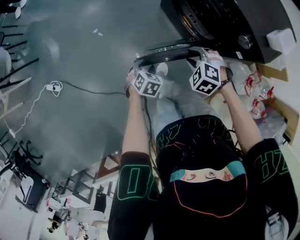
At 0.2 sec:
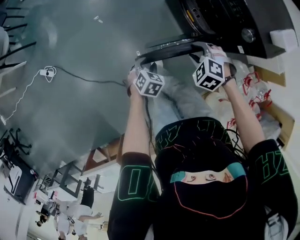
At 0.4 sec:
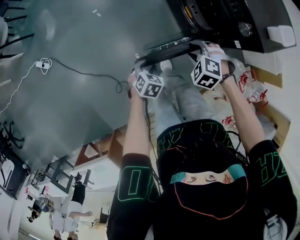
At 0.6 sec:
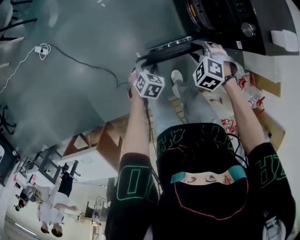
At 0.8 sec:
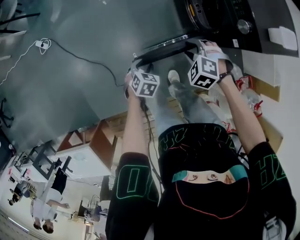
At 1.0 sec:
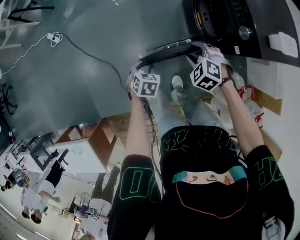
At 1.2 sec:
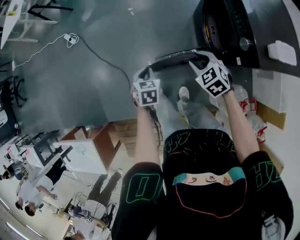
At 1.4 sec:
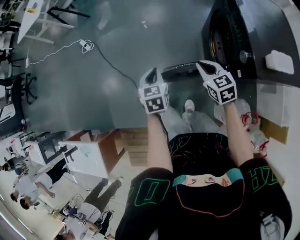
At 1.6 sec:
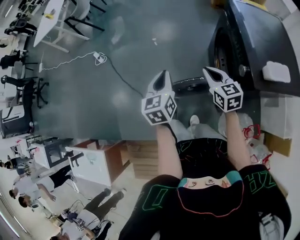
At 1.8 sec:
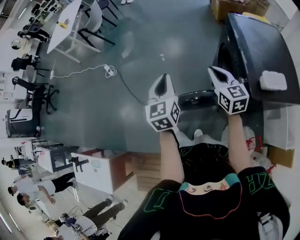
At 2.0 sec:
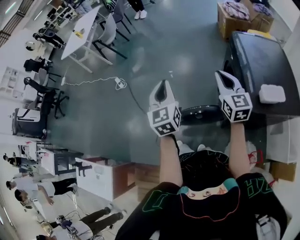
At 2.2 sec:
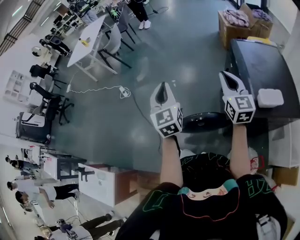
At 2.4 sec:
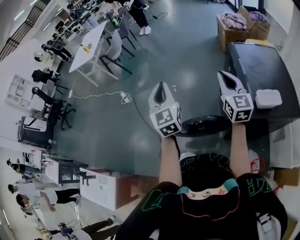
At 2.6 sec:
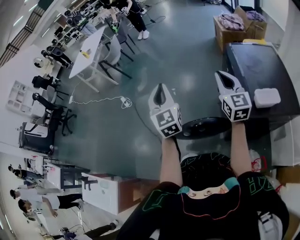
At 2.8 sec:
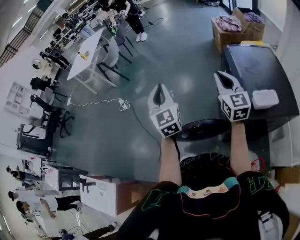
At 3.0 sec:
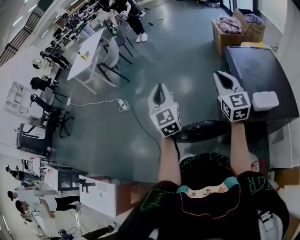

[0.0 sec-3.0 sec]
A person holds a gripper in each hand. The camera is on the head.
0.0 sec to 1.6 sec: The right gripper travels upward by approximately 20 cm, angles its fingers upward, by roughly 40 degrees, and closes its fingers. Meanwhile the left gripper moves upward, about 35 cm, tilts its fingers approximately 40 degrees upward, and closes.
1.6 sec to 3.0 sec: Both grippers travel together upward, some 20 cm. The left gripper rotates approximately 40 degrees. The right gripper rotates roughly 30 degrees.

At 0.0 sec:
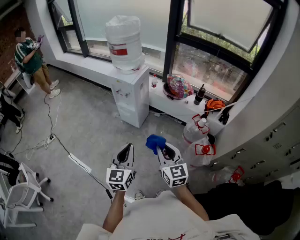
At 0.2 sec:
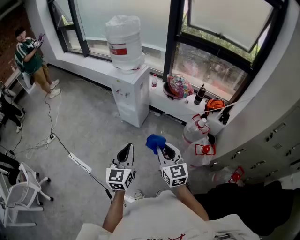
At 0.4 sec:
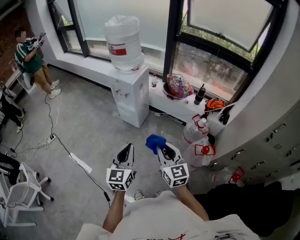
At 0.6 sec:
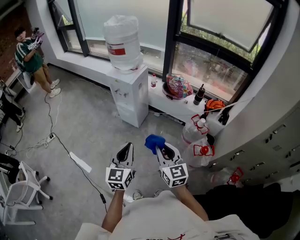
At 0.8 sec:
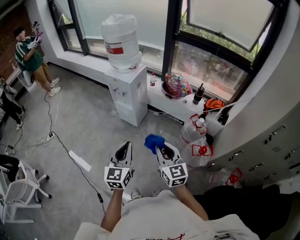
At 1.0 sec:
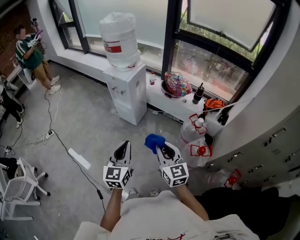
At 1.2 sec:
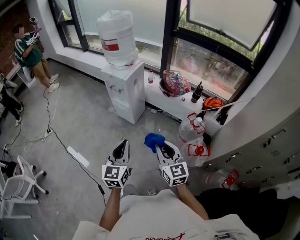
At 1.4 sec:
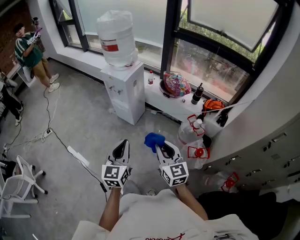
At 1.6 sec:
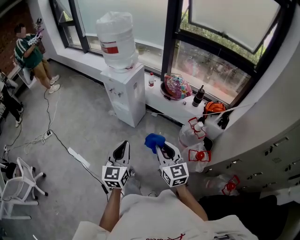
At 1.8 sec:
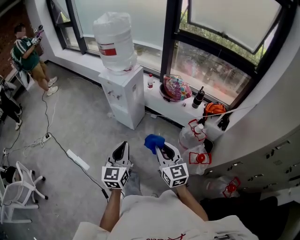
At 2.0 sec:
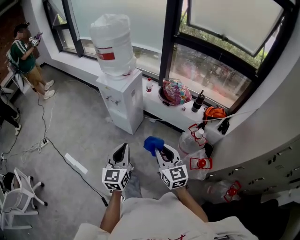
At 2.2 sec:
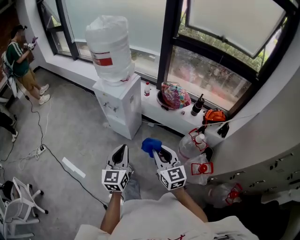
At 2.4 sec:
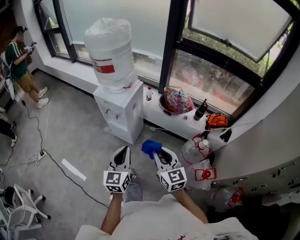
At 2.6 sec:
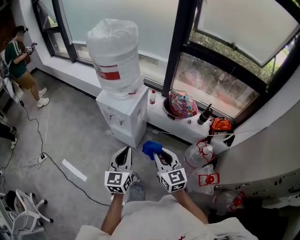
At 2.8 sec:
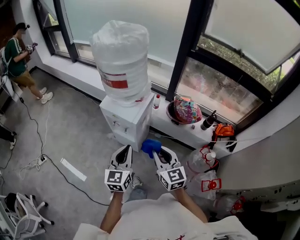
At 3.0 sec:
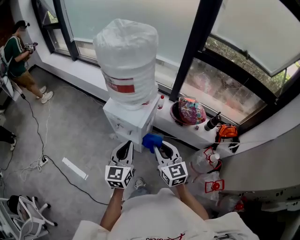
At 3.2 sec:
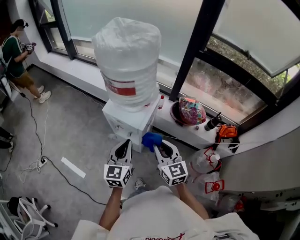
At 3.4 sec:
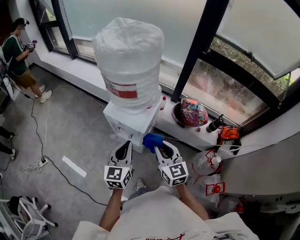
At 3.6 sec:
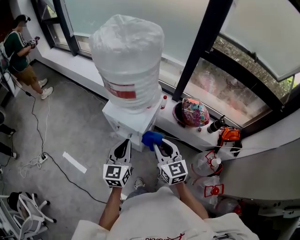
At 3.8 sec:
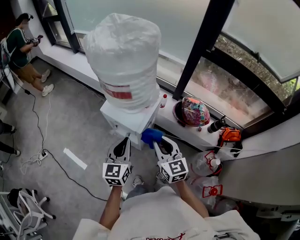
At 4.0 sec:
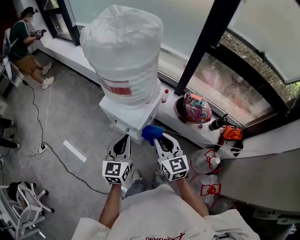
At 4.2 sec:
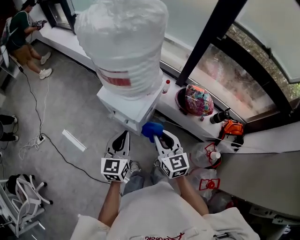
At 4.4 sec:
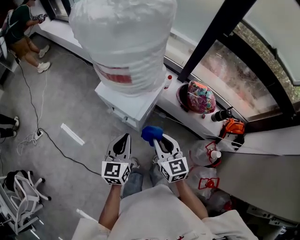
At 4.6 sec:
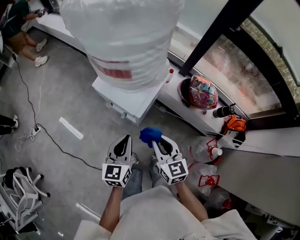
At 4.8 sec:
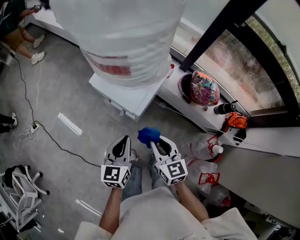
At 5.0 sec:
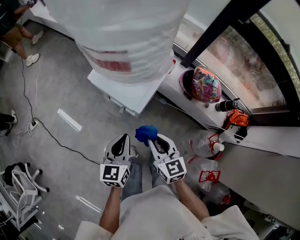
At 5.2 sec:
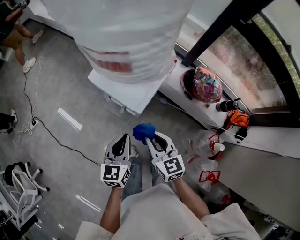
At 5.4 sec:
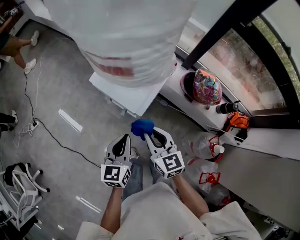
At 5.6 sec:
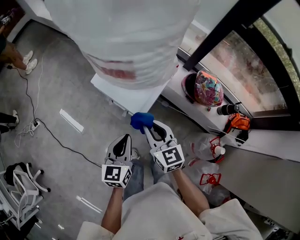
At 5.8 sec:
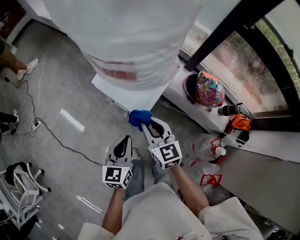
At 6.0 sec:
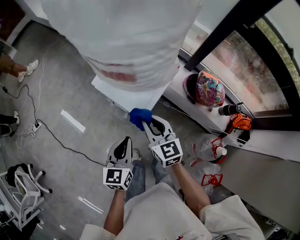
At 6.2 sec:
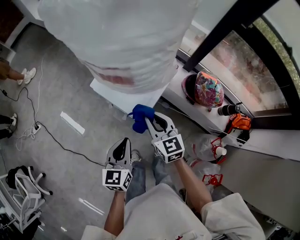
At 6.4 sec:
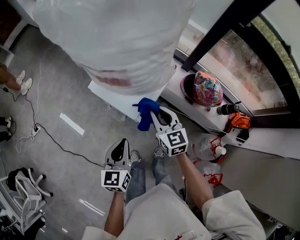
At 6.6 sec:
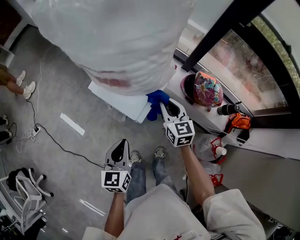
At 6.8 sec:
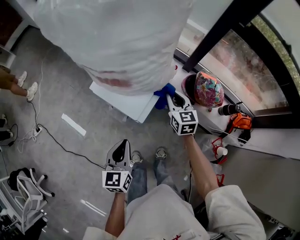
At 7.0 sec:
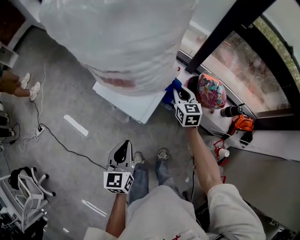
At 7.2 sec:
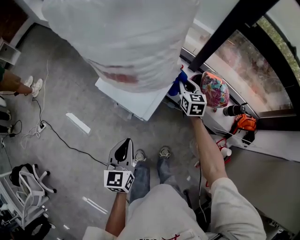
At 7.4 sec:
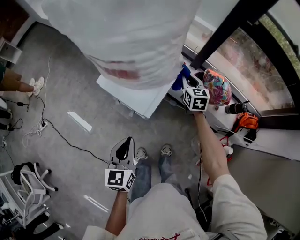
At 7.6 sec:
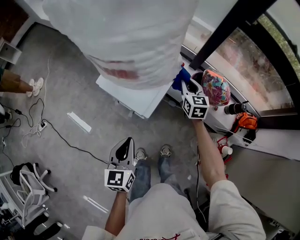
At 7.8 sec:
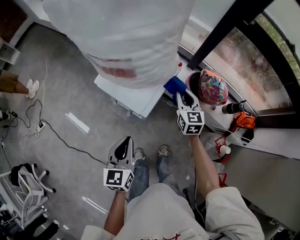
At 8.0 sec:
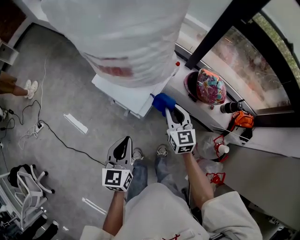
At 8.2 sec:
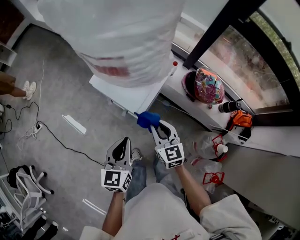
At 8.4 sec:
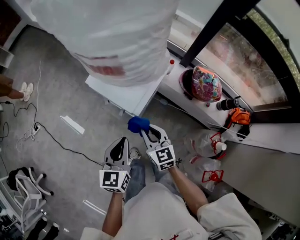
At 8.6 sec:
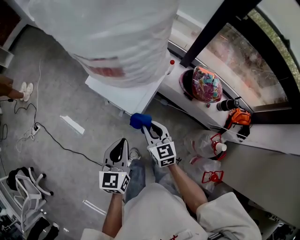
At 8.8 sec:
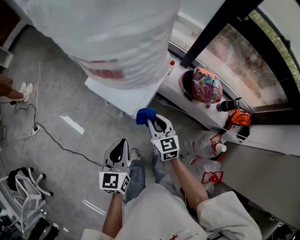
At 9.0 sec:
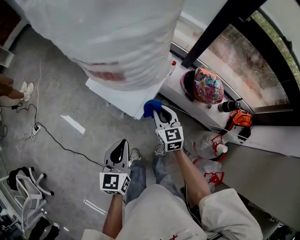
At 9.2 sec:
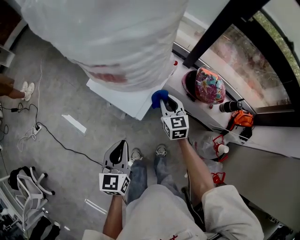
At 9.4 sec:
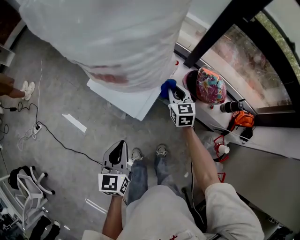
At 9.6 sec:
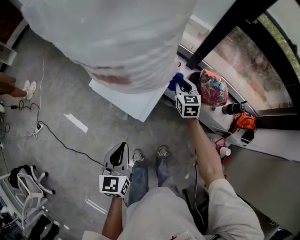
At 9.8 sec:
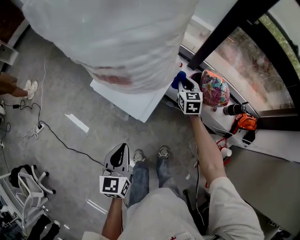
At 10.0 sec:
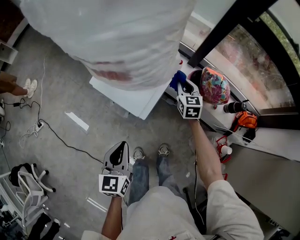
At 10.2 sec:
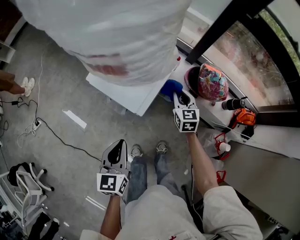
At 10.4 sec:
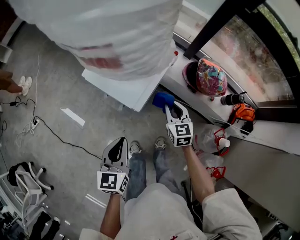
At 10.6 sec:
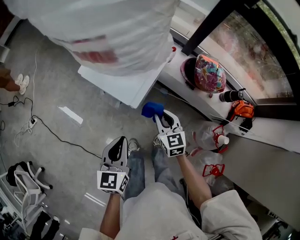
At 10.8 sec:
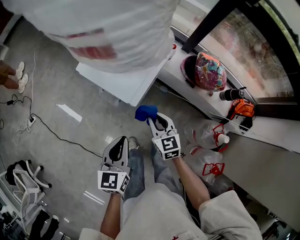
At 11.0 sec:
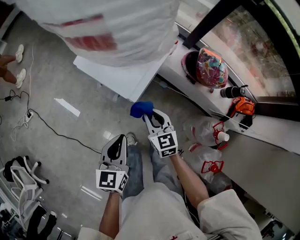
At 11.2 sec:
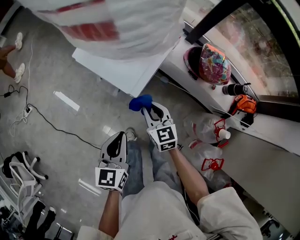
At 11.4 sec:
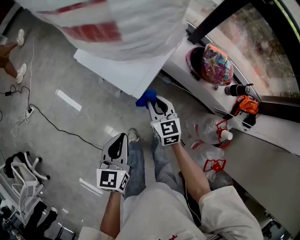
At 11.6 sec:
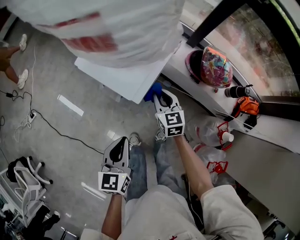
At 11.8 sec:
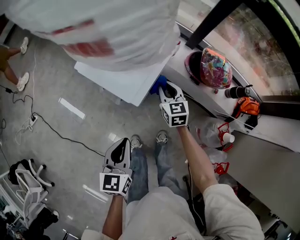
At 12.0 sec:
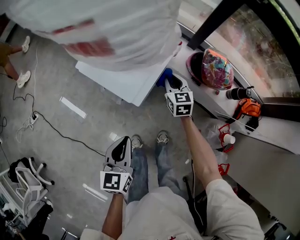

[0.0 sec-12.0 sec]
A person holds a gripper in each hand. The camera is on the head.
0.0 sec to 1.6 sec: The left gripper is displaced to the right and forward by some 10 cm. Meanwhile the right gripper goes some 10 cm to the right.
1.6 sec to 3.0 sec: The pair of grippers is taken forward, some 40 cm.
3.0 sec to 4.4 sec: Both grippers move downward and forward, approximately 10 cm.
4.4 sec to 6.0 sec: The left gripper heads downward, covering roughly 5 cm, while the right gripper shifts about 10 cm forward and to the left.
6.0 sec to 7.6 sec: The right gripper shifts approximately 25 cm to the right and forward, and swivels approximately 20 degrees.
7.6 sec to 9.0 sec: The right gripper shifts roughly 15 cm backward and to the left.
9.0 sec to 10.4 sec: The right gripper travels to the right by about 5 cm, and moves approximately 15 cm forward and comes back.
10.4 sec to 12.0 sec: The right gripper travels forward by about 10 cm.

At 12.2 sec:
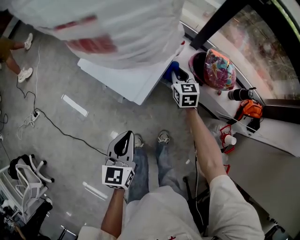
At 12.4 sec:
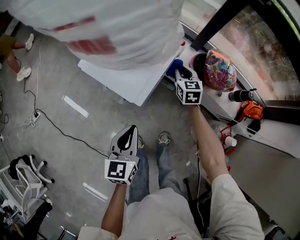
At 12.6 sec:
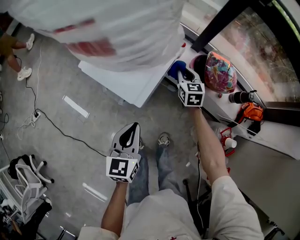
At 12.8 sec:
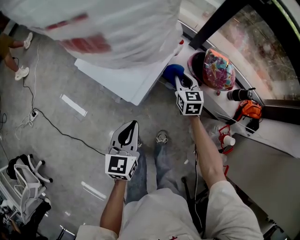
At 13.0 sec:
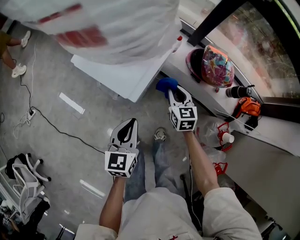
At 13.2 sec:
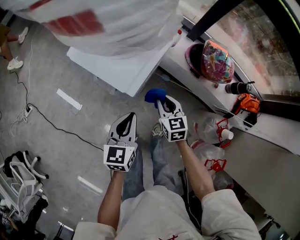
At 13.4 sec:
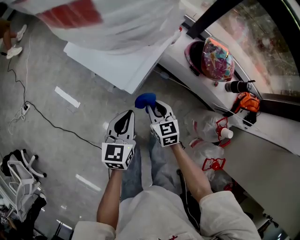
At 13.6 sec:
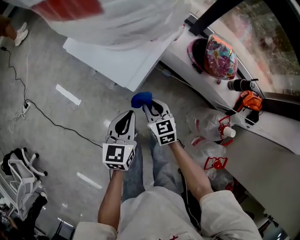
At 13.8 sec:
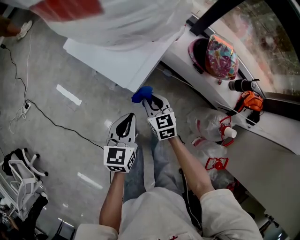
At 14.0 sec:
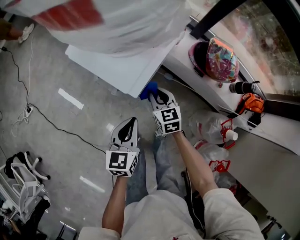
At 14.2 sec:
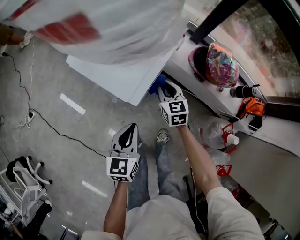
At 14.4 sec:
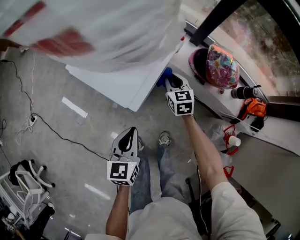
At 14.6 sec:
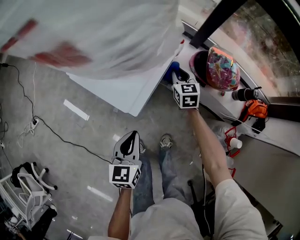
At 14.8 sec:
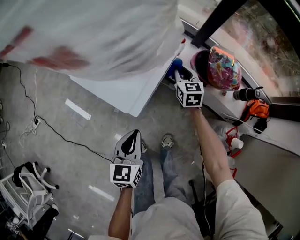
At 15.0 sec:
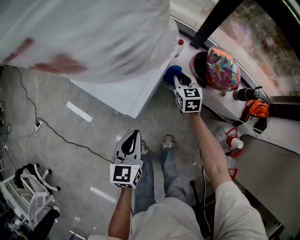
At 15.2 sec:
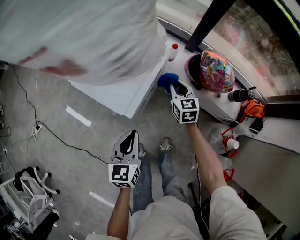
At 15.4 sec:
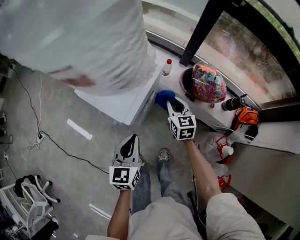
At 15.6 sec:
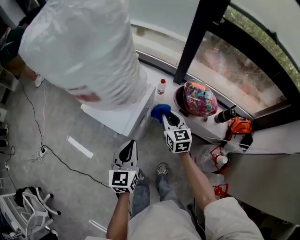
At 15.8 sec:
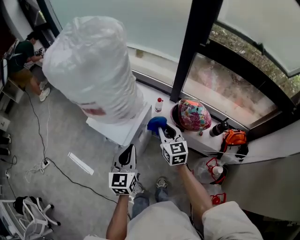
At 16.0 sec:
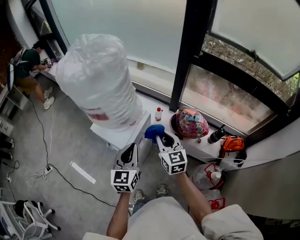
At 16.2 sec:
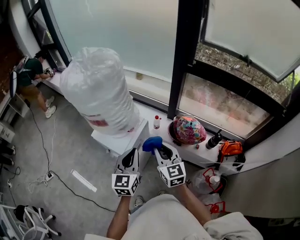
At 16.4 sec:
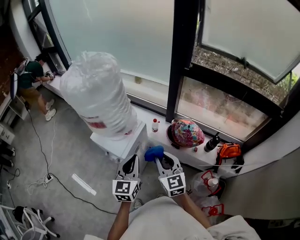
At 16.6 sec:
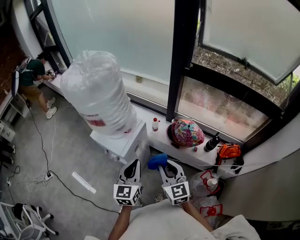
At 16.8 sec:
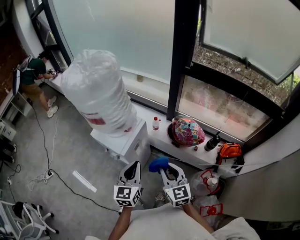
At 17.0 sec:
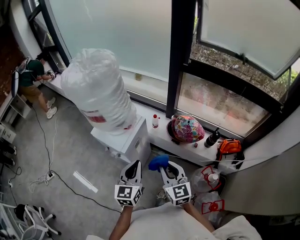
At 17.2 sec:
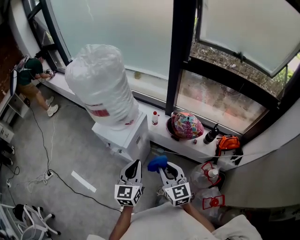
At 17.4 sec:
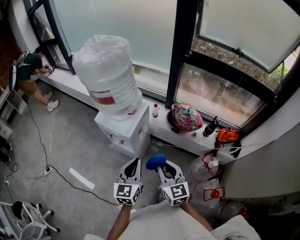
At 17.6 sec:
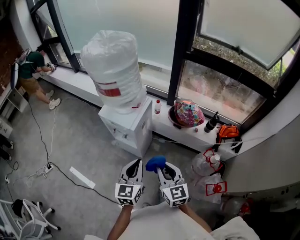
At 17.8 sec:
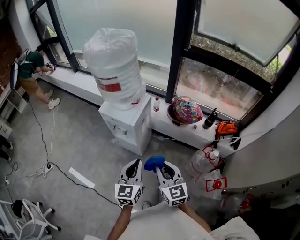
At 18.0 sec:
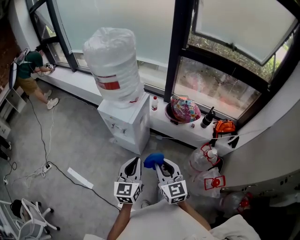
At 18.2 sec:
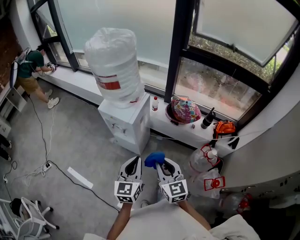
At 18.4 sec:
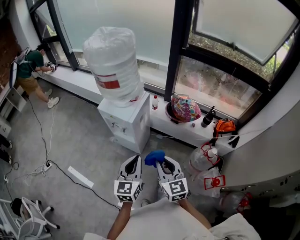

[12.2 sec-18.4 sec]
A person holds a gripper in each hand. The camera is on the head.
12.2 sec to 13.8 sec: The left gripper goes some 10 cm downward; the right gripper goes some 20 cm backward and to the left.
13.8 sec to 15.4 sec: The right gripper is displaced to the right, forward and upward by some 20 cm. The left gripper is displaced upward by roughly 10 cm.
15.4 sec to 16.8 sec: The right gripper goes some 30 cm upward and backward. The left gripper travels upward and to the right by roughly 20 cm.
16.8 sec to 18.4 sec: The left gripper travels backward by approximately 20 cm, while the right gripper shifts about 20 cm backward and to the left.

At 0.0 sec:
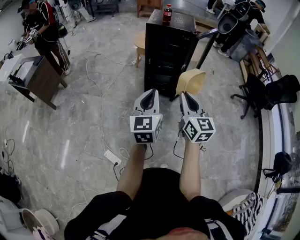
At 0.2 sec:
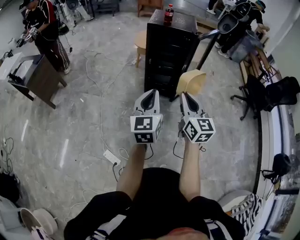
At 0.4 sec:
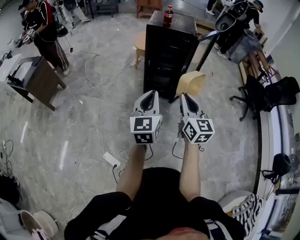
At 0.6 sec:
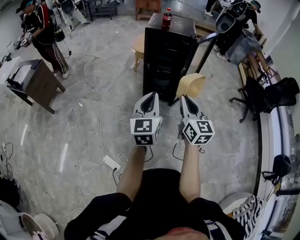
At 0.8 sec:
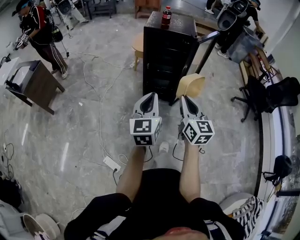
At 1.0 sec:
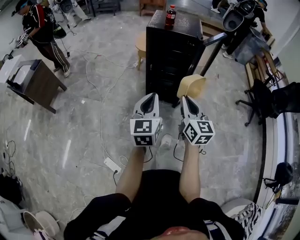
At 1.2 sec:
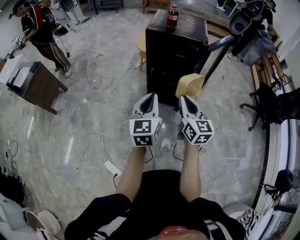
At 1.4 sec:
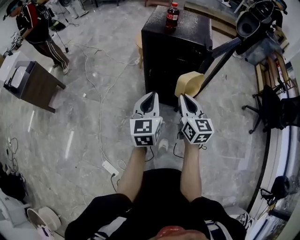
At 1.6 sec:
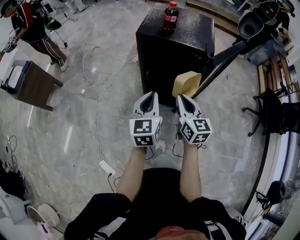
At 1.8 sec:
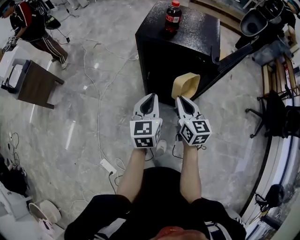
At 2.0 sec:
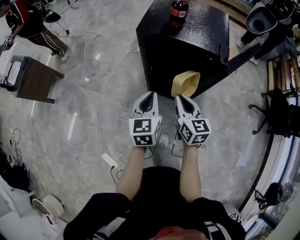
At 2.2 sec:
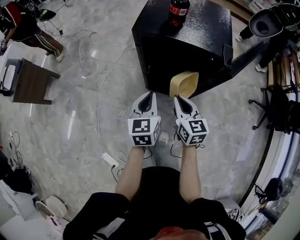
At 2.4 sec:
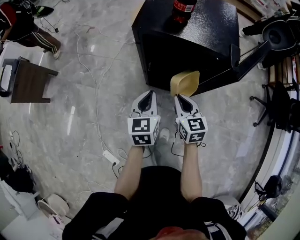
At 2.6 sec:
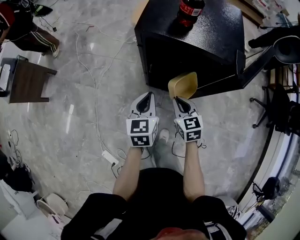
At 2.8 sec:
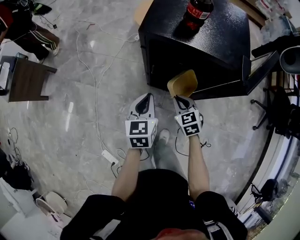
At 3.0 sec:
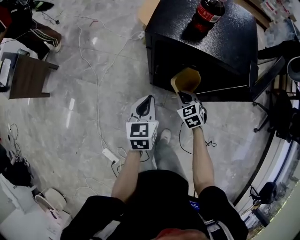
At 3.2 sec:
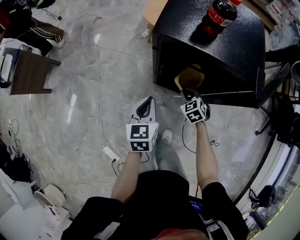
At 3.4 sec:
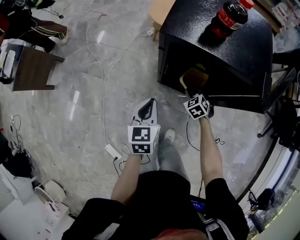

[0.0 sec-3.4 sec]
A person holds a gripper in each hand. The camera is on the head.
0.0 sec to 1.6 sec: The grippers both shift forward by roughly 35 cm.
1.6 sec to 3.4 sec: The left gripper is displaced downward, forward and to the left by approximately 20 cm, and rotates approximately 20 degrees; the right gripper goes roughly 40 cm downward and forward, and angles its fingers downward, by approximately 50 degrees.
